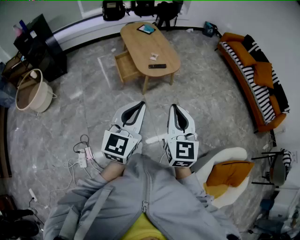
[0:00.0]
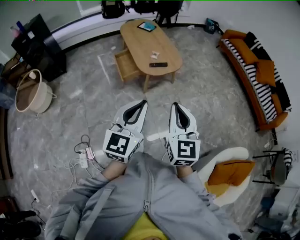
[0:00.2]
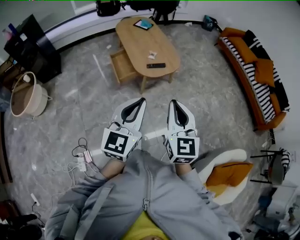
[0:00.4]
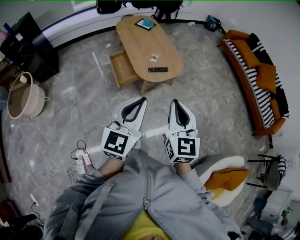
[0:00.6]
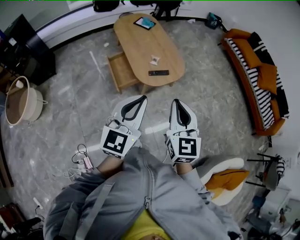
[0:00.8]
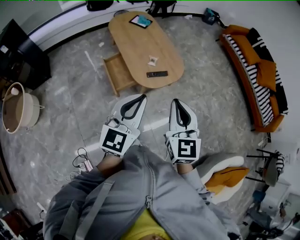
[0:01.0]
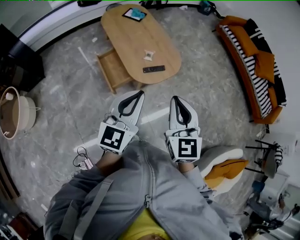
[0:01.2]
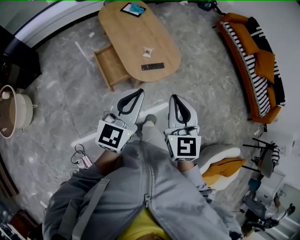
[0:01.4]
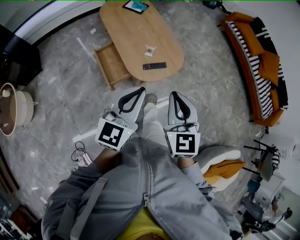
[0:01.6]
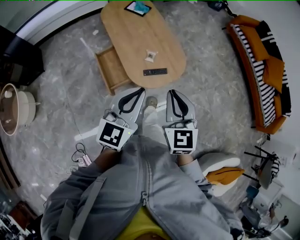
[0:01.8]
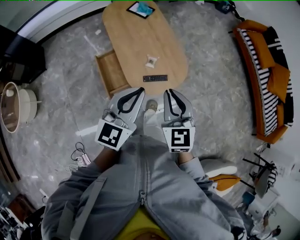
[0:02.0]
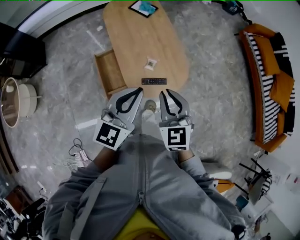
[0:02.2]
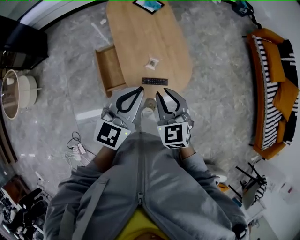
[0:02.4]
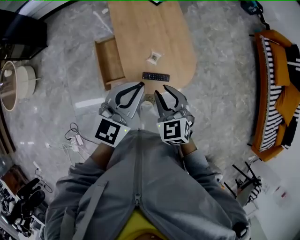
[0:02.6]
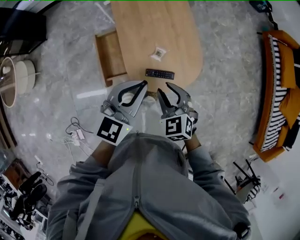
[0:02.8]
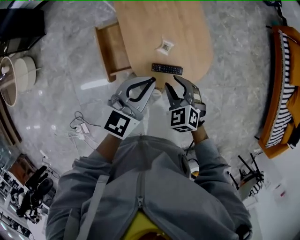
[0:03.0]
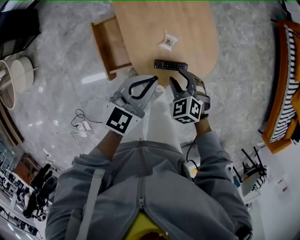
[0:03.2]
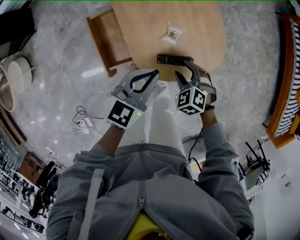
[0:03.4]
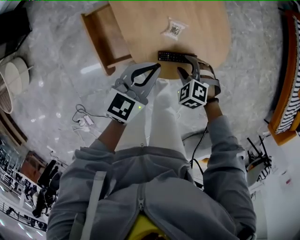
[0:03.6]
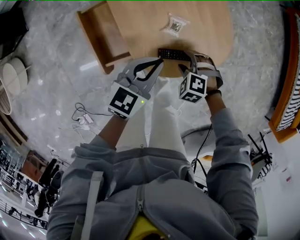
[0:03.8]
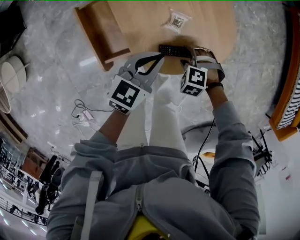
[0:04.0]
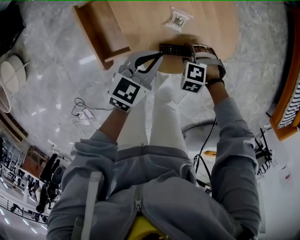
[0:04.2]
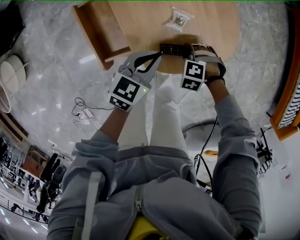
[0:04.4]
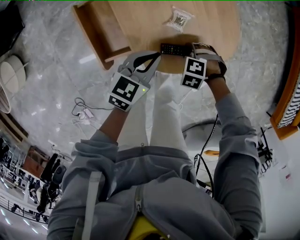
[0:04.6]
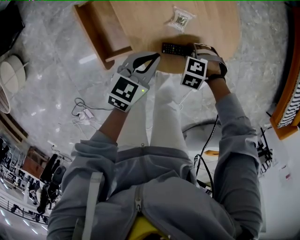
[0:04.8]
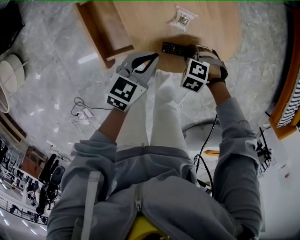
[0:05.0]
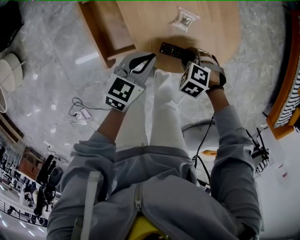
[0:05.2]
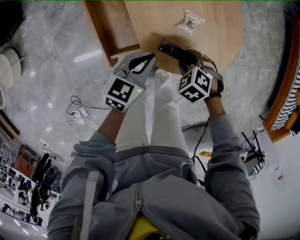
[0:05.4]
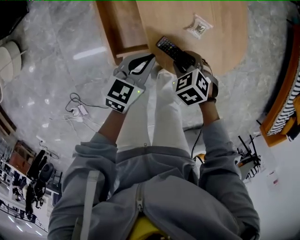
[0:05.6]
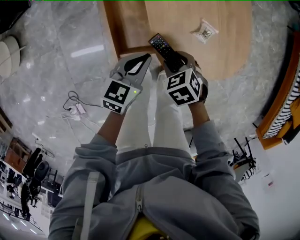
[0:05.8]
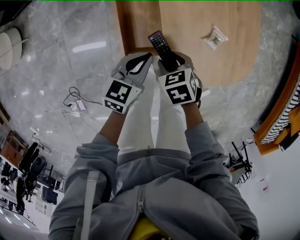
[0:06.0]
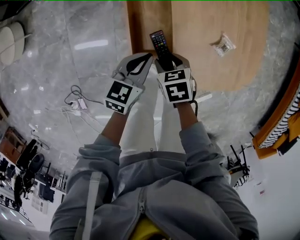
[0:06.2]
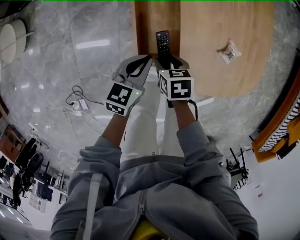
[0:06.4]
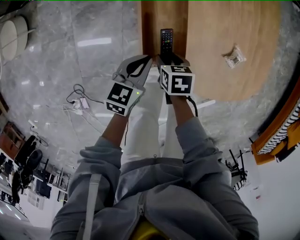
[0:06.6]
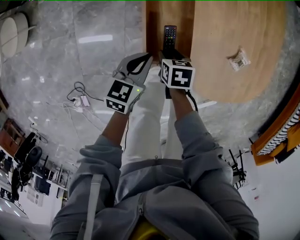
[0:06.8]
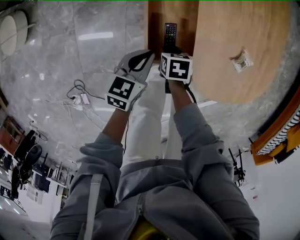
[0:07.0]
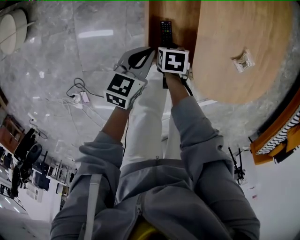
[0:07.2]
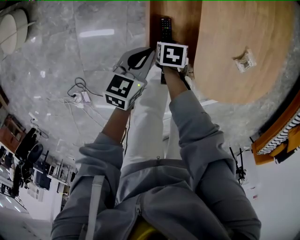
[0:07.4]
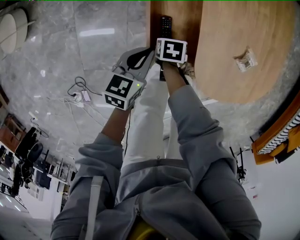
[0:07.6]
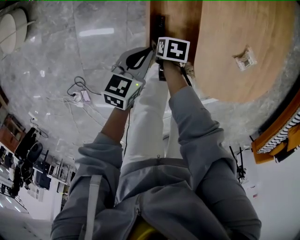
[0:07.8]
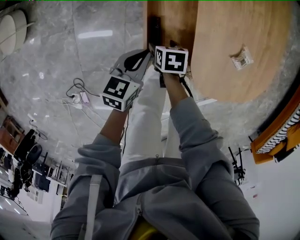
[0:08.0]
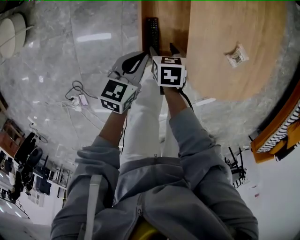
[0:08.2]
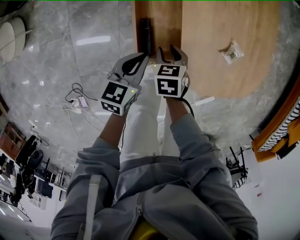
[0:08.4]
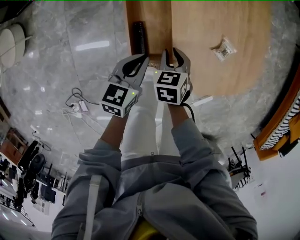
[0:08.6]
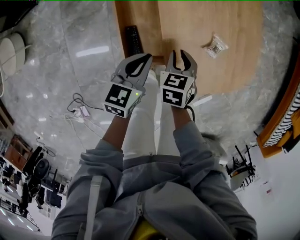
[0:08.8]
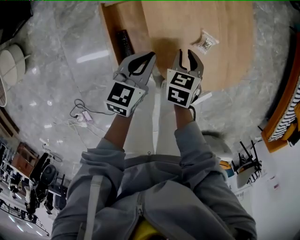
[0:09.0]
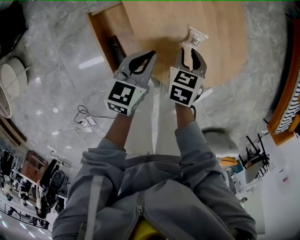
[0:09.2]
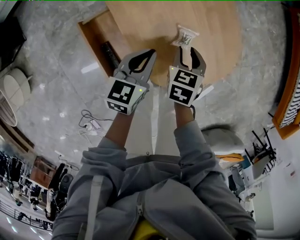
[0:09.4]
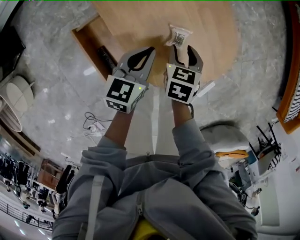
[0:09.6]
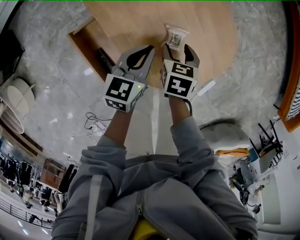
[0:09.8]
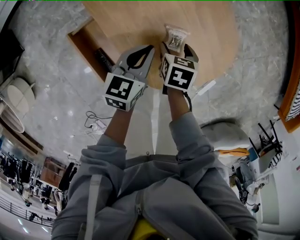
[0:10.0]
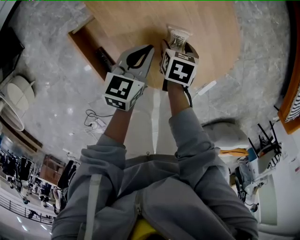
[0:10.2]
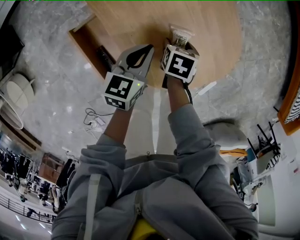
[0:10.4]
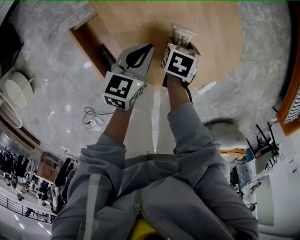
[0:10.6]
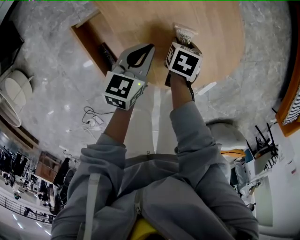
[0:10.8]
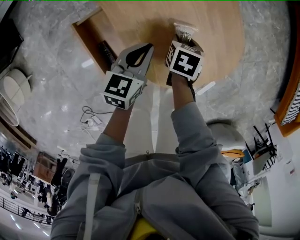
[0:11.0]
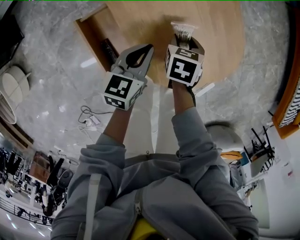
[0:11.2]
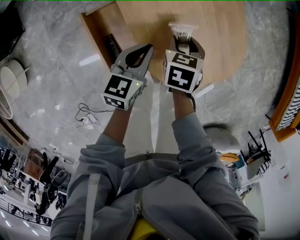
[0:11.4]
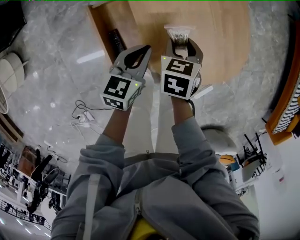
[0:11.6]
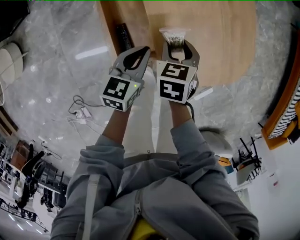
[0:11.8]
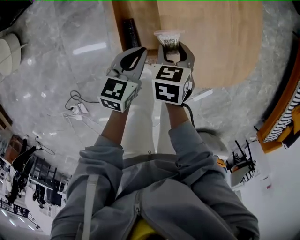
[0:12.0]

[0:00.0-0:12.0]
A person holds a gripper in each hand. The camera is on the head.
0:00.0 to 0:01.6: The two grippers travel together, forward, roughly 40 cm.
0:01.6 to 0:03.0: The left gripper is displaced forward and downward by about 30 cm; the right gripper travels downward and forward by approximately 40 cm, points its fingers roughly 30 degrees further downward, and opens.
0:03.0 to 0:04.4: The grippers both shift downward by some 25 cm. The left gripper rotates roughly 20 degrees. Meanwhile the right gripper tips its fingers downward by roughly 40 degrees.
0:04.4 to 0:06.0: The right gripper shifts by about 25 cm, and rotates around the line of its fingers by roughly 50 degrees, clockwise from behind. The left gripper ends up some 20 cm from where it was.
0:06.0 to 0:07.6: The right gripper is displaced downward by approximately 15 cm, and changes its angle by about 30 degrees; the left gripper changes place by approximately 15 cm.
0:07.6 to 0:09.0: The left gripper moves roughly 20 cm. Meanwhile the right gripper changes place by approximately 30 cm, rotates some 30 degrees, and opens, then closes again.
0:09.0 to 0:10.4: The left gripper moves roughly 15 cm. Meanwhile the right gripper shifts by approximately 15 cm, changes its angle by roughly 30 degrees, and opens.
0:10.4 to 0:12.0: The left gripper changes place by about 20 cm; the right gripper moves approximately 25 cm, swivels about 40 degrees, and closes.

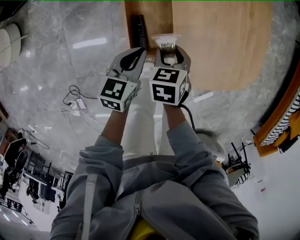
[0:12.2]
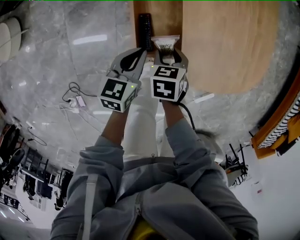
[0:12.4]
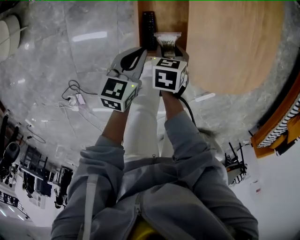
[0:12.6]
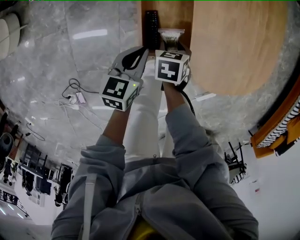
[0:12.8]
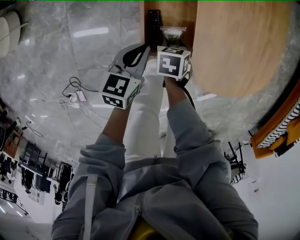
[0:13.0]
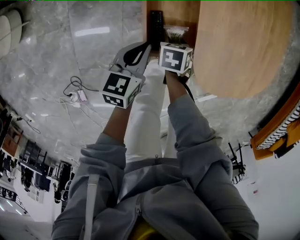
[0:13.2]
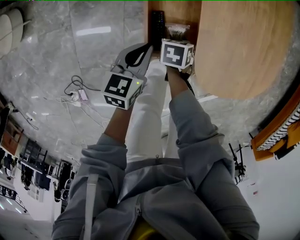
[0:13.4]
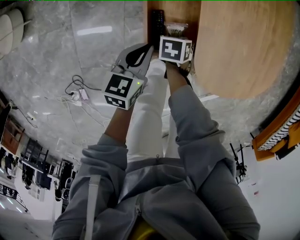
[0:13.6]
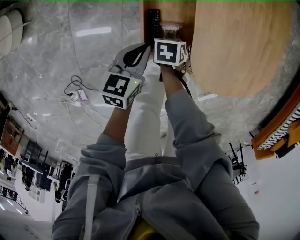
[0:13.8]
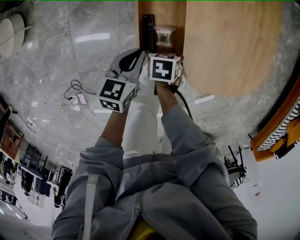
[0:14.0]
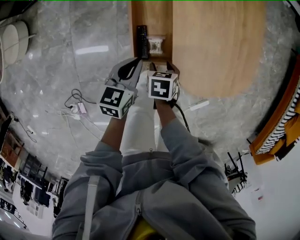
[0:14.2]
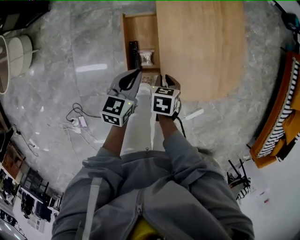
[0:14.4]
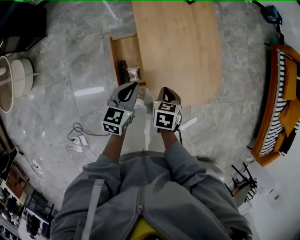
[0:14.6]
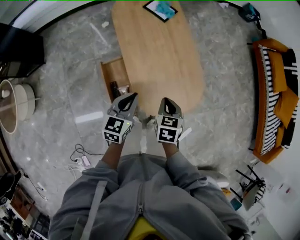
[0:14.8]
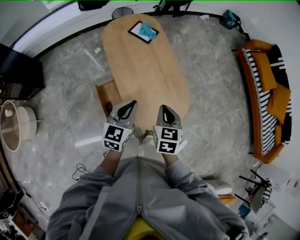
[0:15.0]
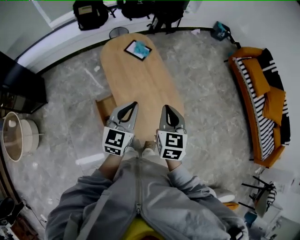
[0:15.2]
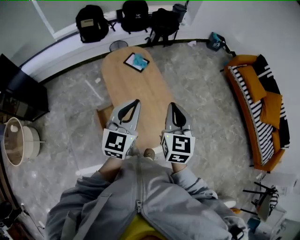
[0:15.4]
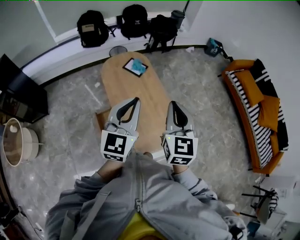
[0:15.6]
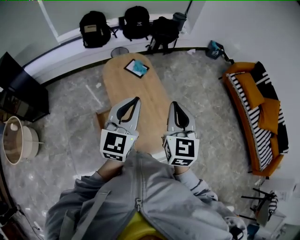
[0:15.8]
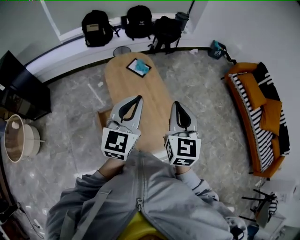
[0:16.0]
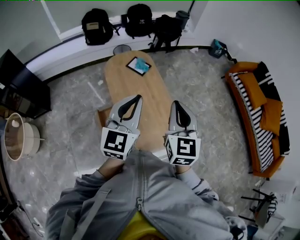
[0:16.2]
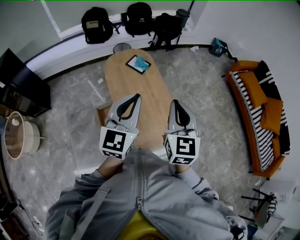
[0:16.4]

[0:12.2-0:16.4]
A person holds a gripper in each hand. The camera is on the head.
0:12.2 to 0:13.6: The right gripper travels downward by about 15 cm. Meanwhile the left gripper moves about 5 cm.
0:13.6 to 0:15.0: The two grippers go roughly 40 cm upward. The left gripper changes its angle by roughly 30 degrees. Meanwhile the right gripper points its fingers approximately 40 degrees further upward, and closes.
0:15.0 to 0:16.4: Both grippers move upward, approximately 25 cm. The right gripper angles its fingers upward, by approximately 30 degrees. Meanwhile the left gripper swivels approximately 20 degrees.

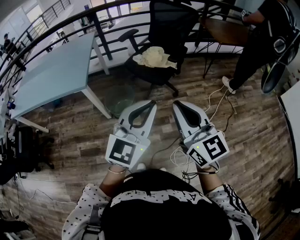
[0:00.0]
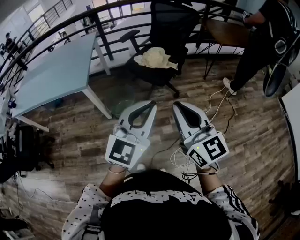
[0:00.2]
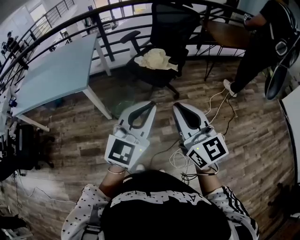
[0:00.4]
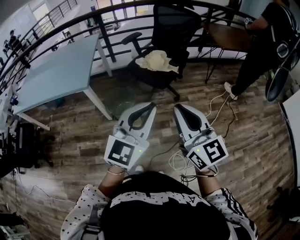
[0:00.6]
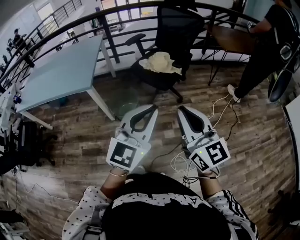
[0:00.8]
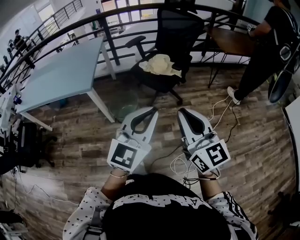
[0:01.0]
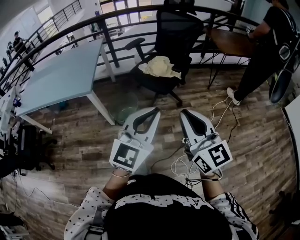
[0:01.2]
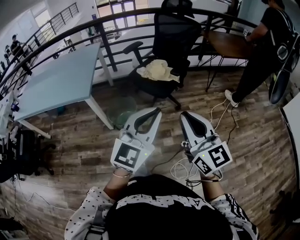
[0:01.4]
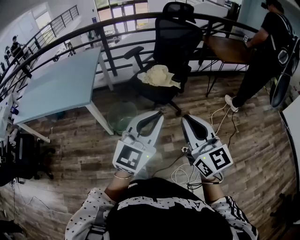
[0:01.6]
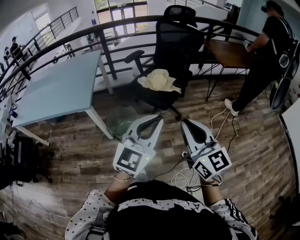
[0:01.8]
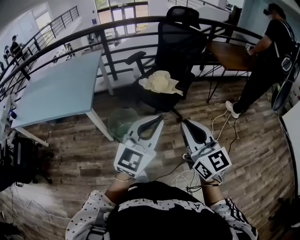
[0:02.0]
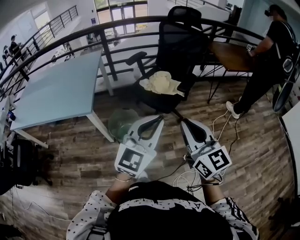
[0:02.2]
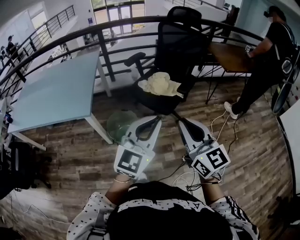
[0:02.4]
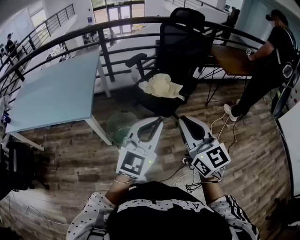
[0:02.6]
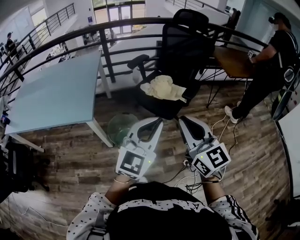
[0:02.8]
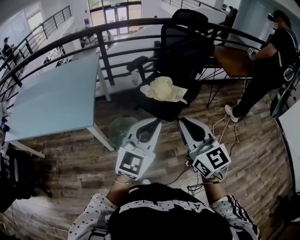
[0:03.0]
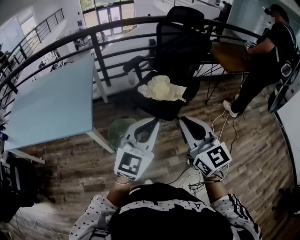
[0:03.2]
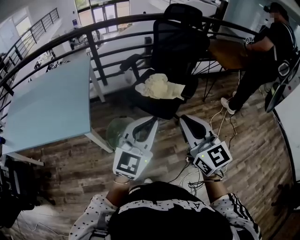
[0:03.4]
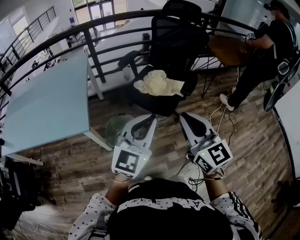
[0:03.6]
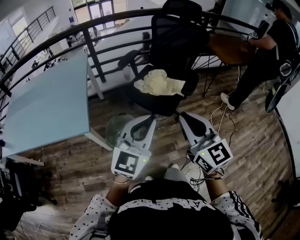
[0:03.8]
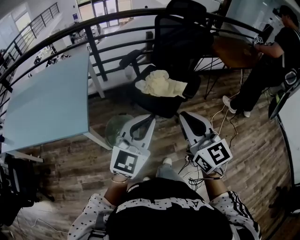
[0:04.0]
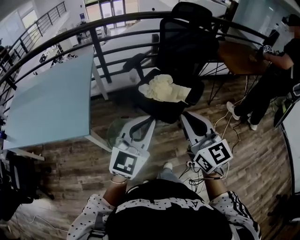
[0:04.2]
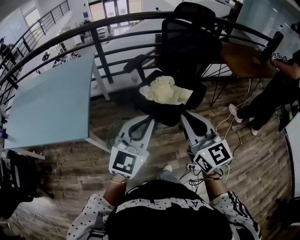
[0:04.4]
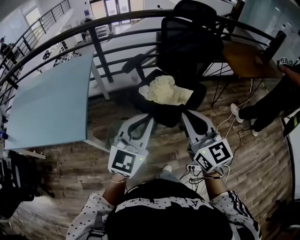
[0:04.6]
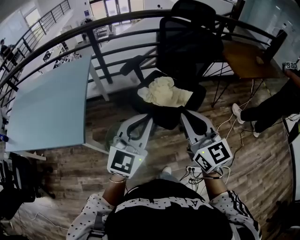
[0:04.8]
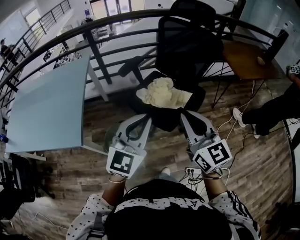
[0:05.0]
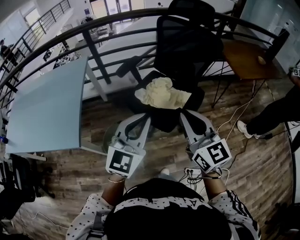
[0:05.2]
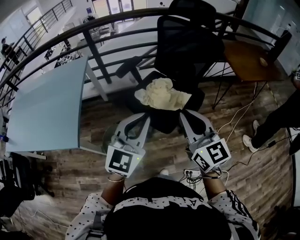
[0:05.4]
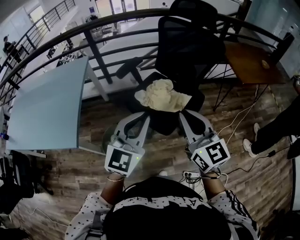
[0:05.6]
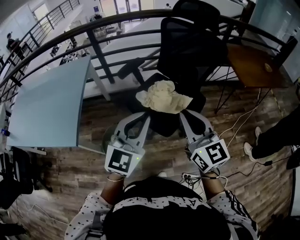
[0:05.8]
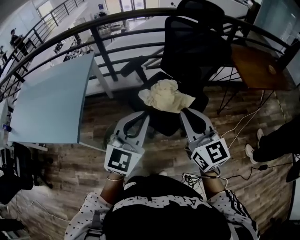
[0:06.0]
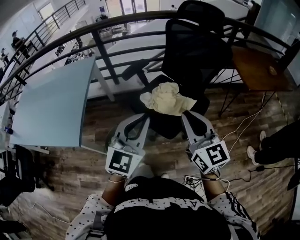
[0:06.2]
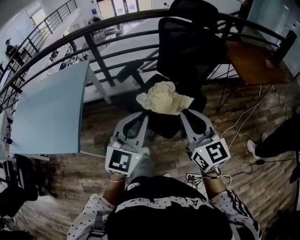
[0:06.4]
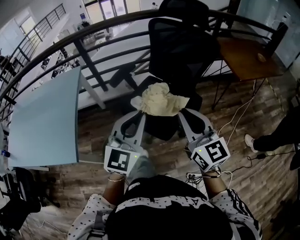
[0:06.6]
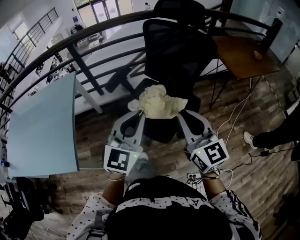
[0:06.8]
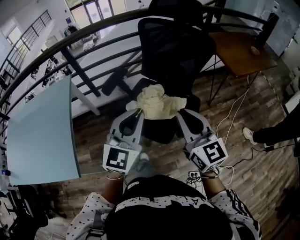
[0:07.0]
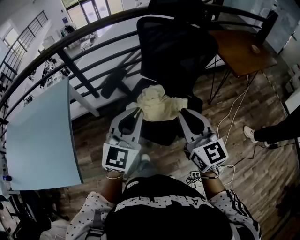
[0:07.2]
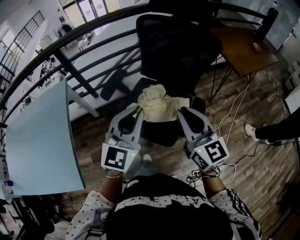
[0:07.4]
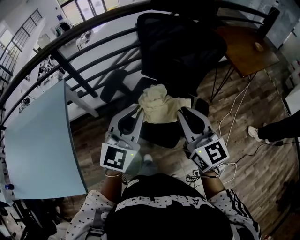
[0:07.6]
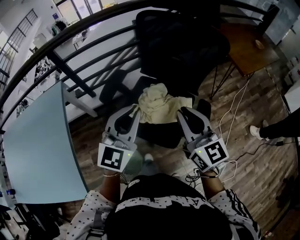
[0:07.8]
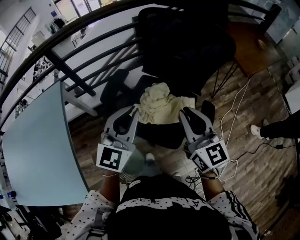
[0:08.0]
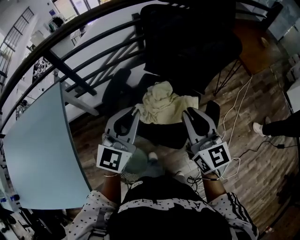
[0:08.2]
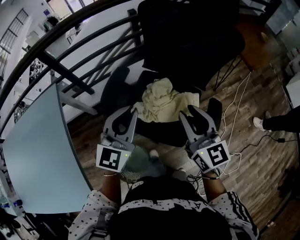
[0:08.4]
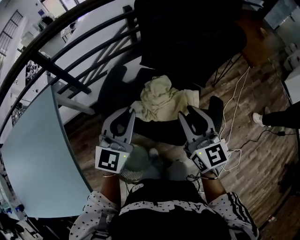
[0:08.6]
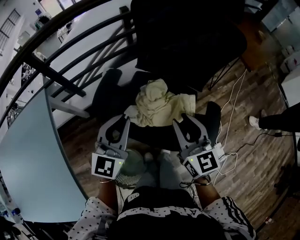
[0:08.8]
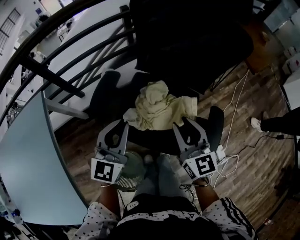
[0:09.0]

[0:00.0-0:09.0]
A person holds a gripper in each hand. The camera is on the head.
0:00.0 to 0:01.6: There are only small adjustments of the grippers.
0:01.6 to 0:03.0: Both grippers move forward and to the left, some 20 cm.
0:03.0 to 0:04.4: The grippers both shift forward by approximately 10 cm.
0:04.4 to 0:06.0: Both grippers move forward and to the right, some 15 cm.
0:06.0 to 0:07.6: The grippers both shift forward by some 20 cm.
0:07.6 to 0:09.0: The left gripper travels downward, forward and to the left by some 20 cm. The right gripper is displaced downward and forward by roughly 20 cm.
